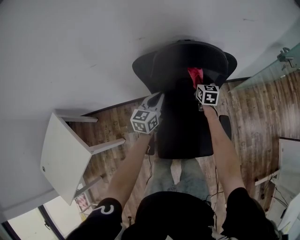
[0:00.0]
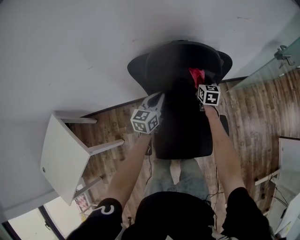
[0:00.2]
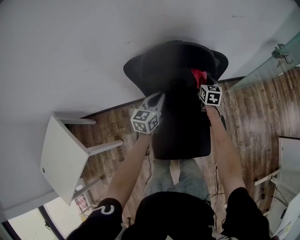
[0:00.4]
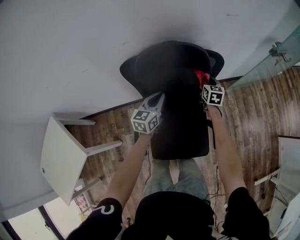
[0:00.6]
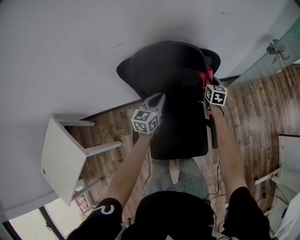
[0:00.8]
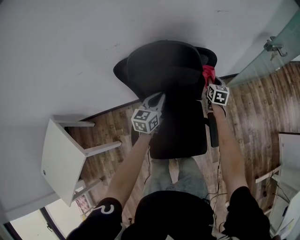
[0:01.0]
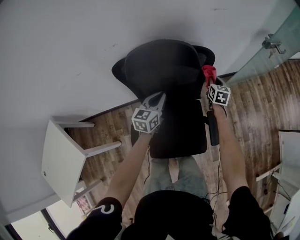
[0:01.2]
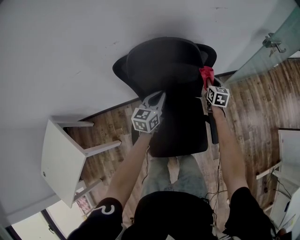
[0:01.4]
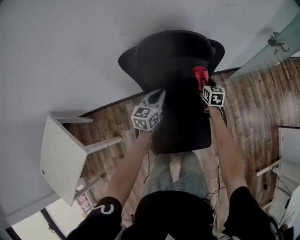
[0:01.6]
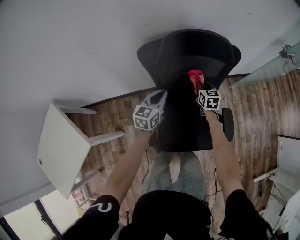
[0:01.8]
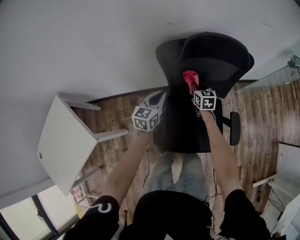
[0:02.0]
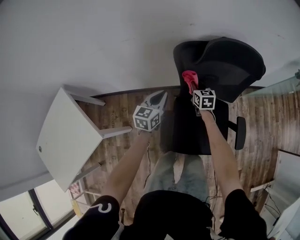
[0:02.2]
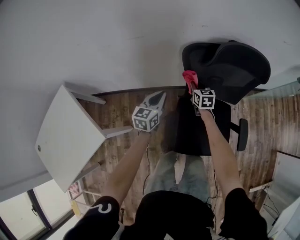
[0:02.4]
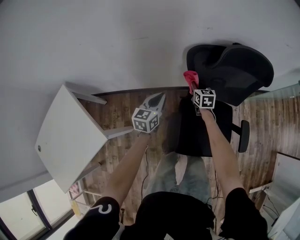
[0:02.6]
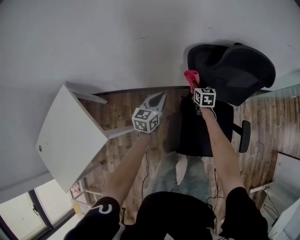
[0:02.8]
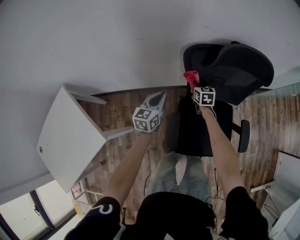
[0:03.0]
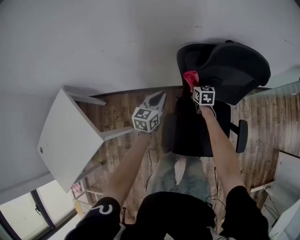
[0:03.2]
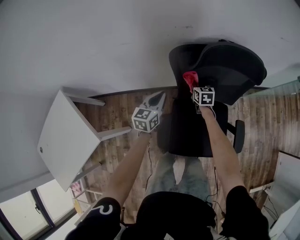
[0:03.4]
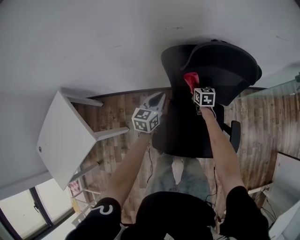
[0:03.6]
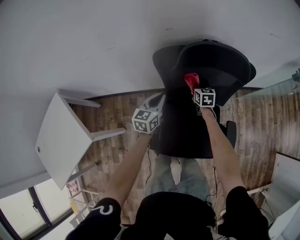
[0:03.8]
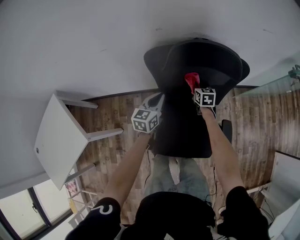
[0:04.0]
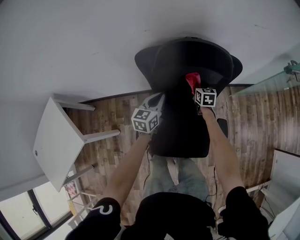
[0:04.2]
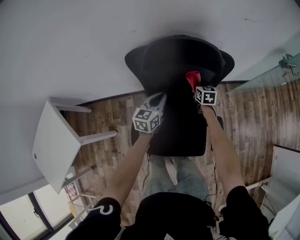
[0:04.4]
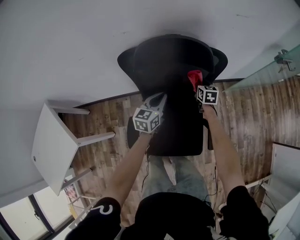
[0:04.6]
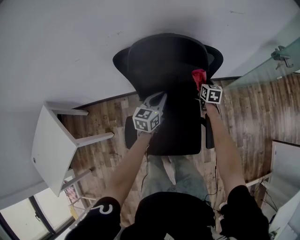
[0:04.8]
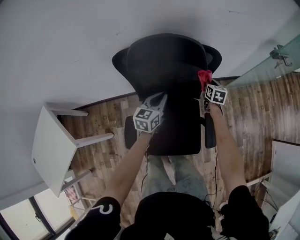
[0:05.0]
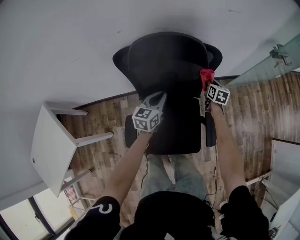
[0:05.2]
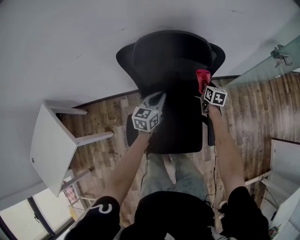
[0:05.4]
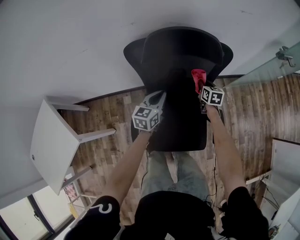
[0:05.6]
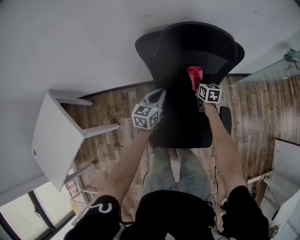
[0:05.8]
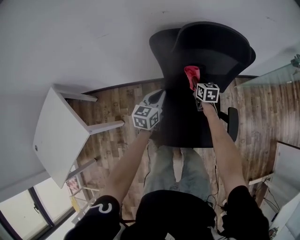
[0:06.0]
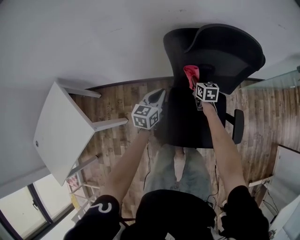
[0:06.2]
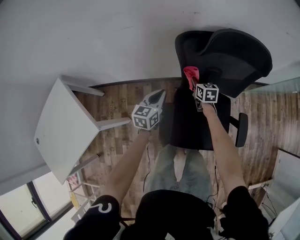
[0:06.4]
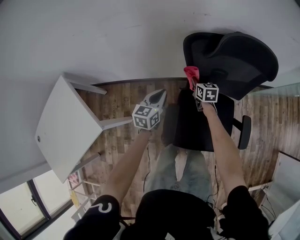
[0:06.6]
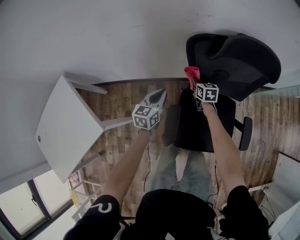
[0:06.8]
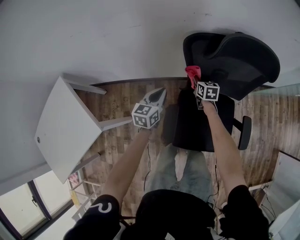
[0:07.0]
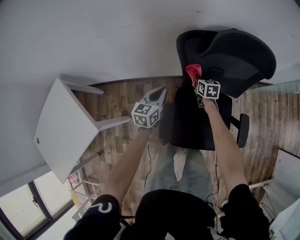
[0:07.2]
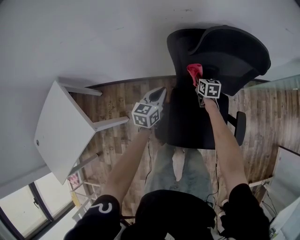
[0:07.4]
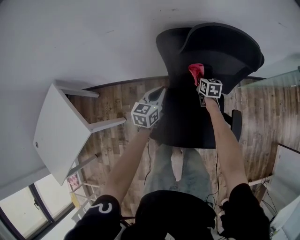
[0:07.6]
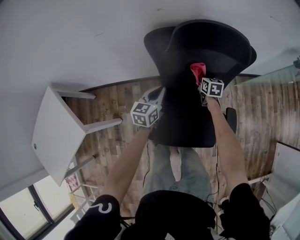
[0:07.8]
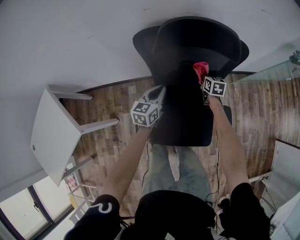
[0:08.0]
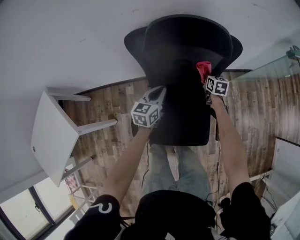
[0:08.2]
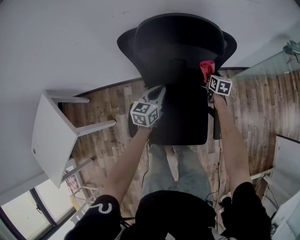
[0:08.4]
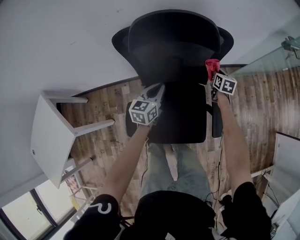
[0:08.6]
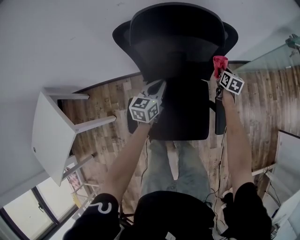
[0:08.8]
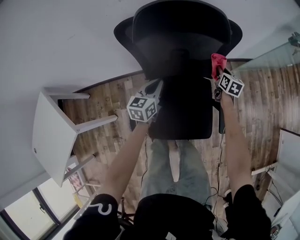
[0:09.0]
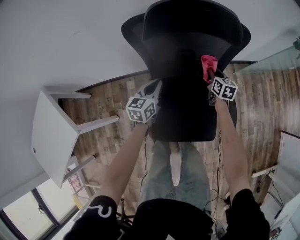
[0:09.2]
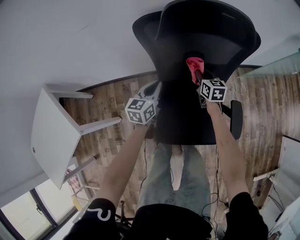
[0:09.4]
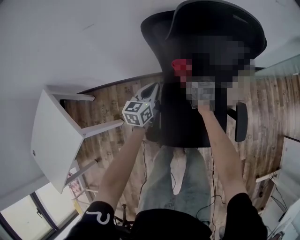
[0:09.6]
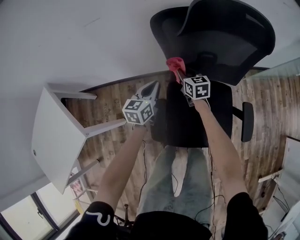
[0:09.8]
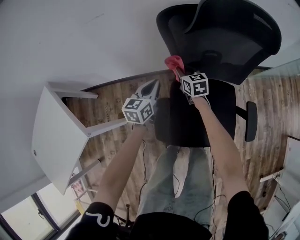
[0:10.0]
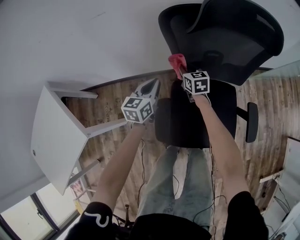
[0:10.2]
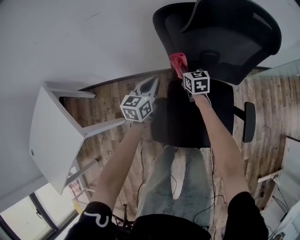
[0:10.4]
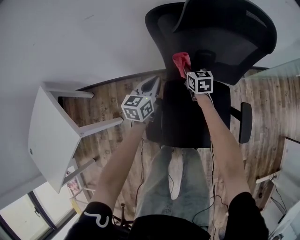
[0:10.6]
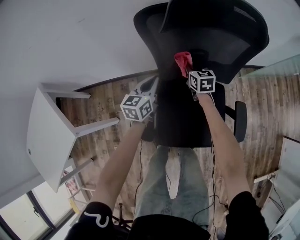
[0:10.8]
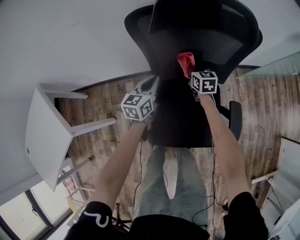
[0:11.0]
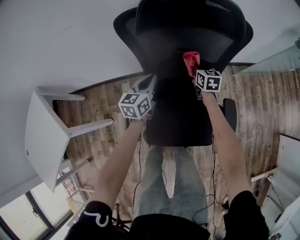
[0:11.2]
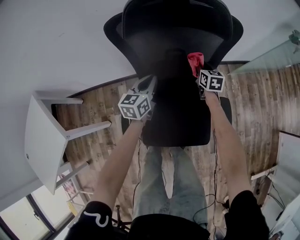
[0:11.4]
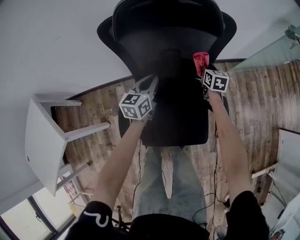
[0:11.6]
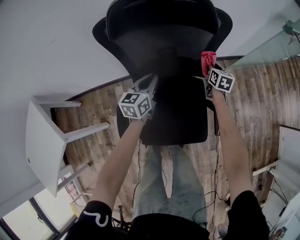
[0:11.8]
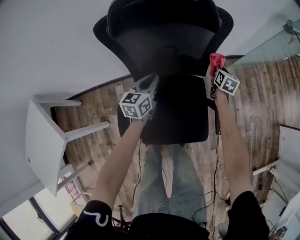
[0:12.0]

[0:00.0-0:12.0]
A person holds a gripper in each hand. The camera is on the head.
0:00.0 to 0:01.6: The right gripper shifts approximately 10 cm to the right. The left gripper shifts approximately 5 cm to the right.
0:01.6 to 0:03.0: Both grippers travel together to the left, some 30 cm.
0:03.0 to 0:04.4: The grippers both shift to the right by roughly 25 cm.
0:04.4 to 0:06.0: Both grippers move to the left and backward, approximately 15 cm.
0:06.0 to 0:07.6: The right gripper reaches about 15 cm to the left, then returns, while the left gripper moves approximately 15 cm to the left and comes back.
0:07.6 to 0:09.0: The right gripper is displaced to the right by roughly 25 cm; the left gripper goes roughly 15 cm to the right.
0:09.0 to 0:10.4: The right gripper is displaced to the left by roughly 35 cm, and turns by about 30 degrees. Meanwhile the left gripper moves to the left, approximately 15 cm.
0:10.4 to 0:12.0: The right gripper is displaced to the right by about 40 cm, and rotates about 30 degrees, while the left gripper travels to the right by approximately 20 cm.

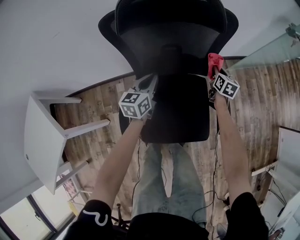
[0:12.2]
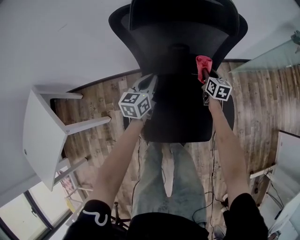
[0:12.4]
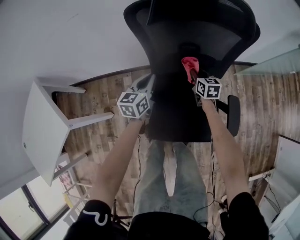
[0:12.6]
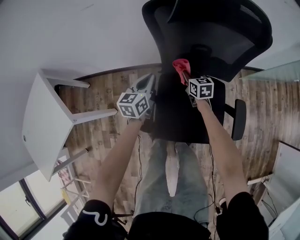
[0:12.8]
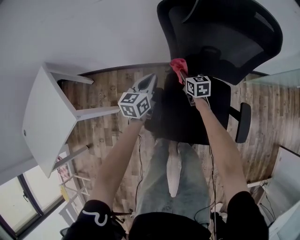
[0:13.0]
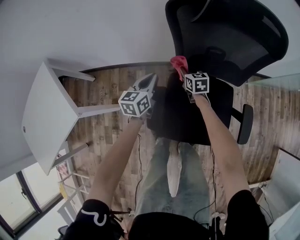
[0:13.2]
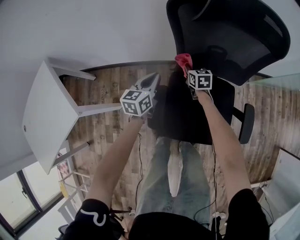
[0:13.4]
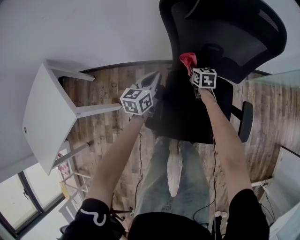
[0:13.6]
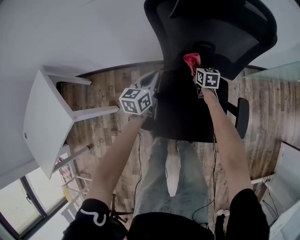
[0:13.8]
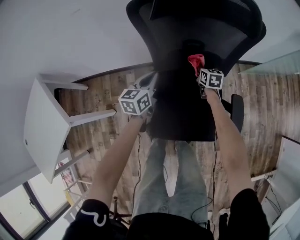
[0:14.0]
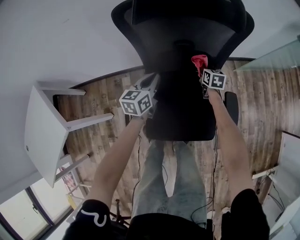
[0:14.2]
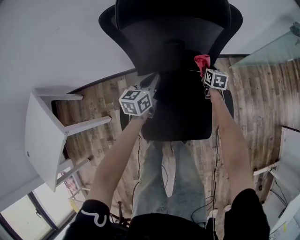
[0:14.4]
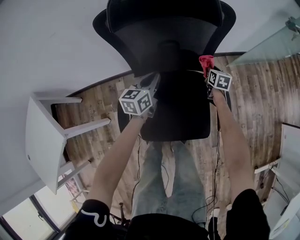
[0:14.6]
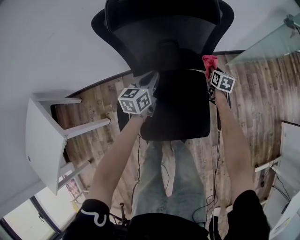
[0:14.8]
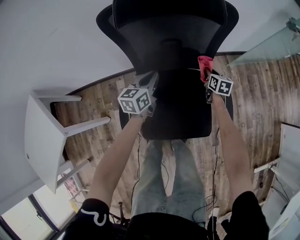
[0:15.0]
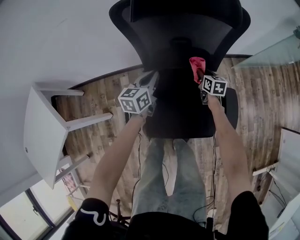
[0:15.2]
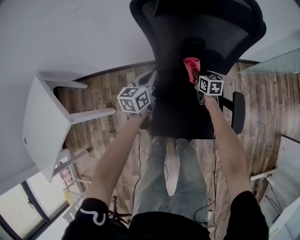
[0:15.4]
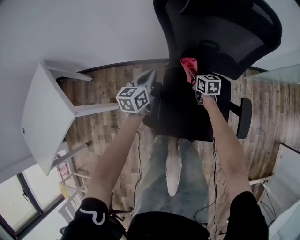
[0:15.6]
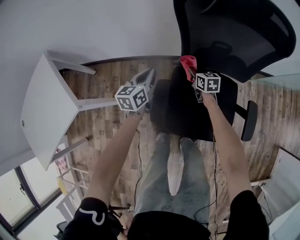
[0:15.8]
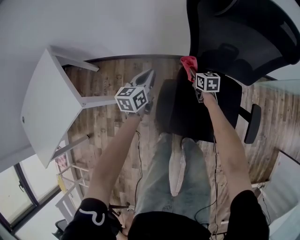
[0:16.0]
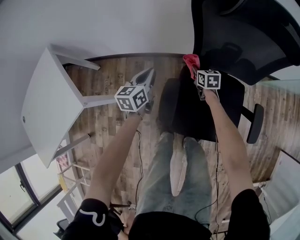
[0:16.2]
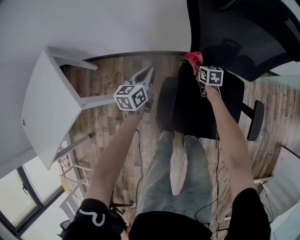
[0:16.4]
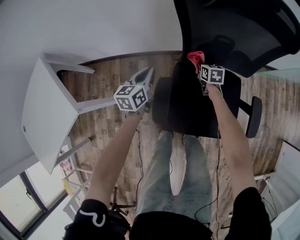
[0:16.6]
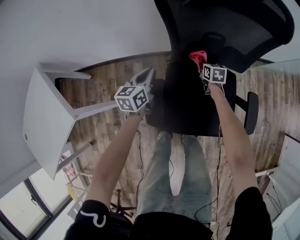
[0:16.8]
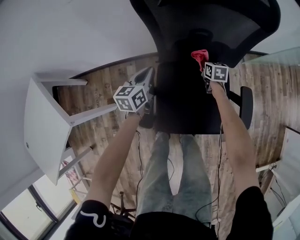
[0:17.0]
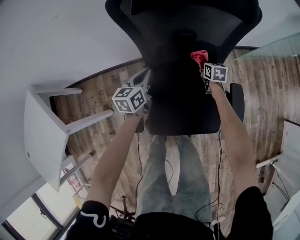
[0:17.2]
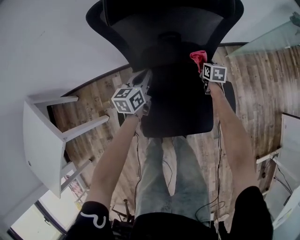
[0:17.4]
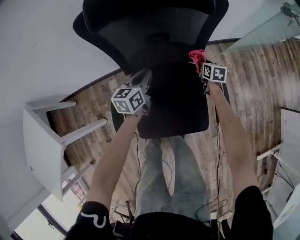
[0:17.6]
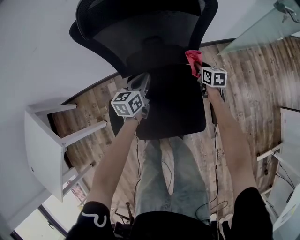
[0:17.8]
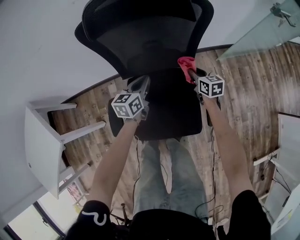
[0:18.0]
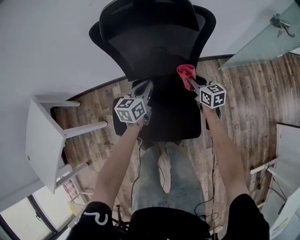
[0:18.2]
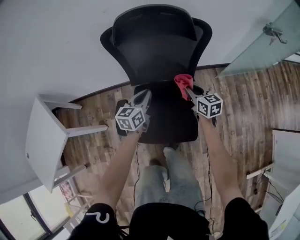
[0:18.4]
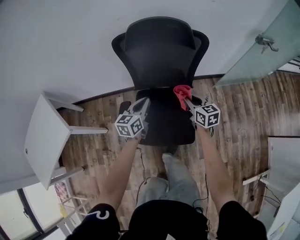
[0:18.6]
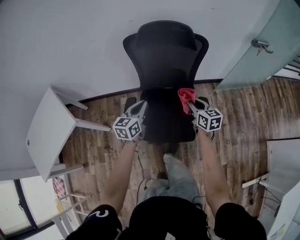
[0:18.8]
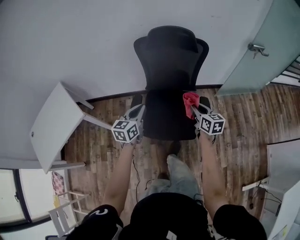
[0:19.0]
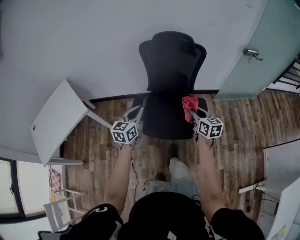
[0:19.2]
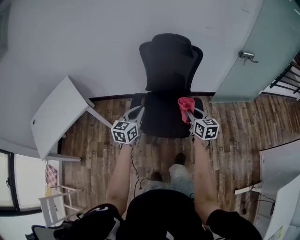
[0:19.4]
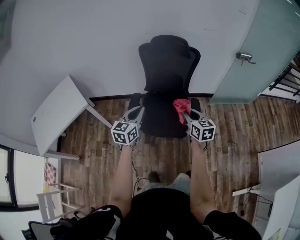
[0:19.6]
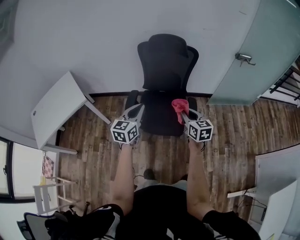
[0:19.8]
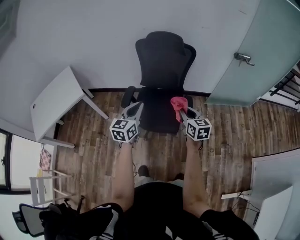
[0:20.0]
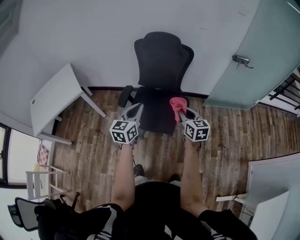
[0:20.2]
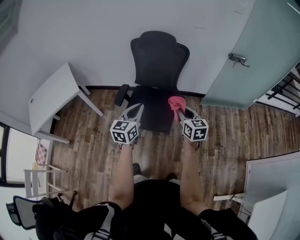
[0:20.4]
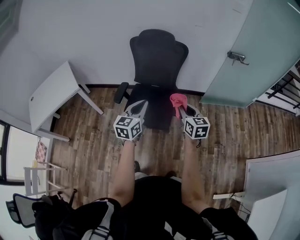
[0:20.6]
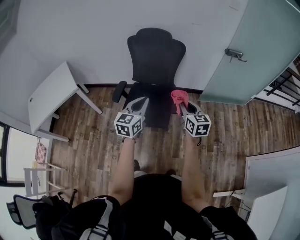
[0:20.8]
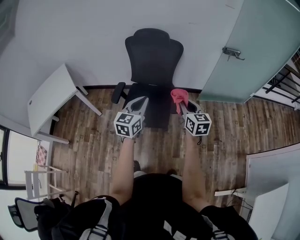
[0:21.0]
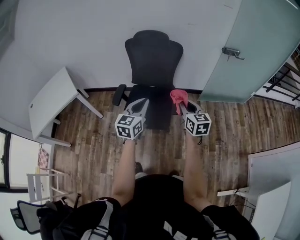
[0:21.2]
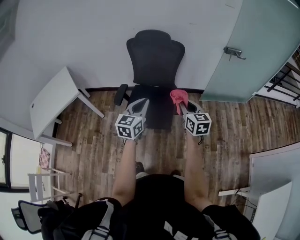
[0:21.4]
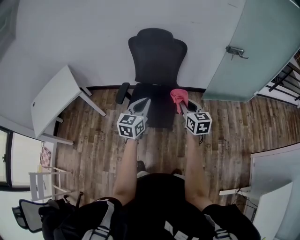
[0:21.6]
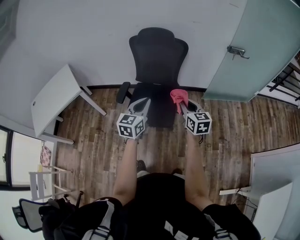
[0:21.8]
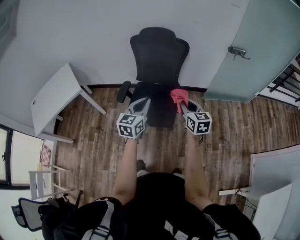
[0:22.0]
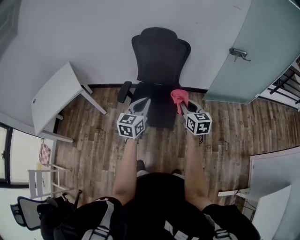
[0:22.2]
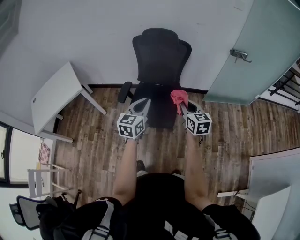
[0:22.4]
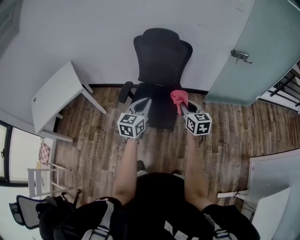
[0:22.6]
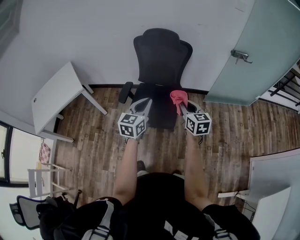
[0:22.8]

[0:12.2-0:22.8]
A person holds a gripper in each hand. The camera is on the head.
0:12.2 to 0:13.8: The left gripper changes place by about 15 cm. Meanwhile the right gripper ends up approximately 30 cm from where it was, and turns by about 30 degrees.
0:13.8 to 0:15.2: The two grippers go about 10 cm to the right.
0:15.2 to 0:16.8: The grippers both shift to the left by approximately 15 cm.
0:16.8 to 0:18.2: The right gripper travels to the right and upward by roughly 25 cm, and rotates approximately 20 degrees; the left gripper shifts roughly 25 cm to the right.
0:18.2 to 0:19.8: The pair of grippers is taken backward, roughly 40 cm. Both grippers travel together upward, approximately 30 cm. The left gripper rotates about 20 degrees.
0:19.8 to 0:21.2: The grippers both shift to the right by roughly 15 cm.
0:21.2 to 0:22.8: The right gripper shifts by roughly 5 cm.

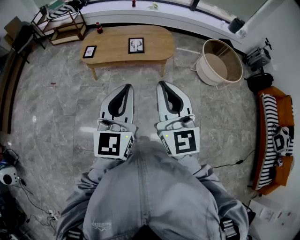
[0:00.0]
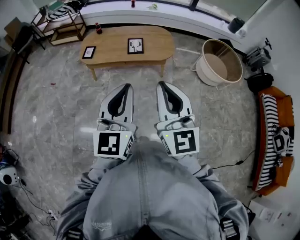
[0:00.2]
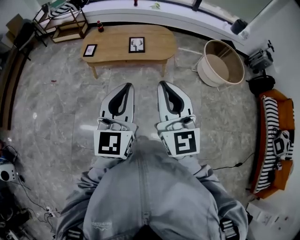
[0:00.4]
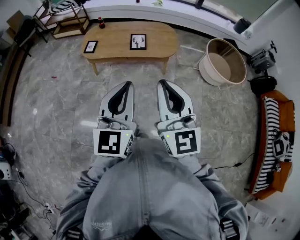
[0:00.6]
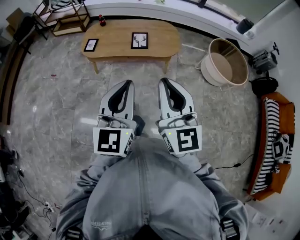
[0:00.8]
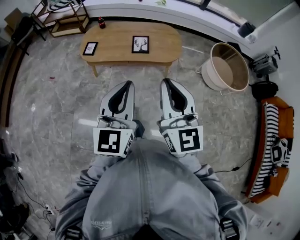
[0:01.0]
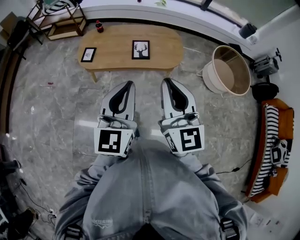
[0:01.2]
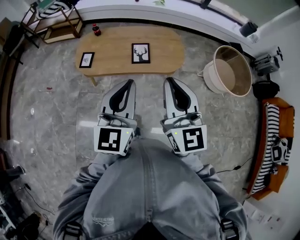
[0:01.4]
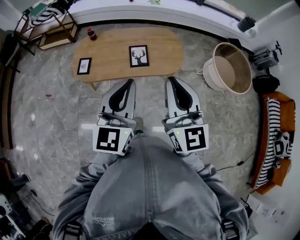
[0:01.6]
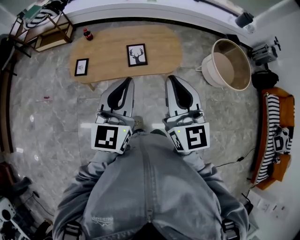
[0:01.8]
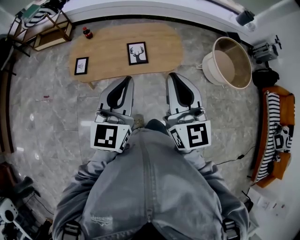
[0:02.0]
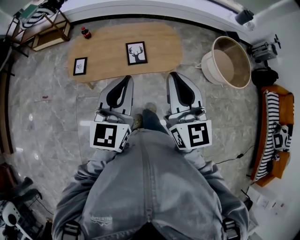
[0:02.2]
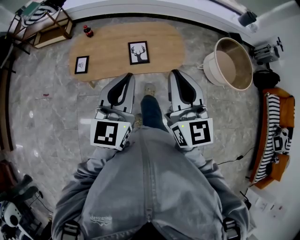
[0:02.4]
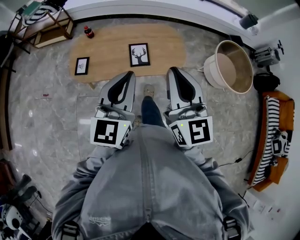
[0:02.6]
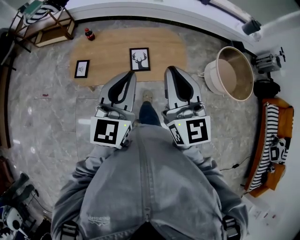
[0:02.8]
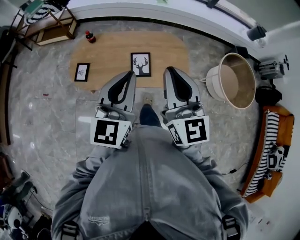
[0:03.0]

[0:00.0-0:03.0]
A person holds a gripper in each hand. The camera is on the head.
0:00.0 to 0:01.6: The grippers both shift forward by roughly 40 cm.
0:01.6 to 0:03.0: The two grippers go approximately 20 cm forward.
